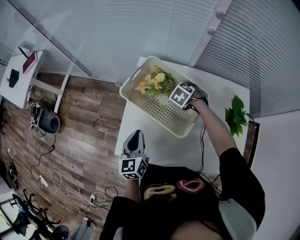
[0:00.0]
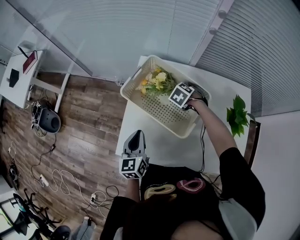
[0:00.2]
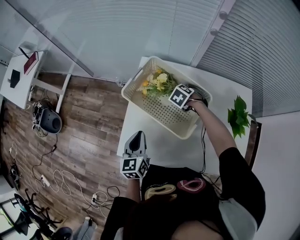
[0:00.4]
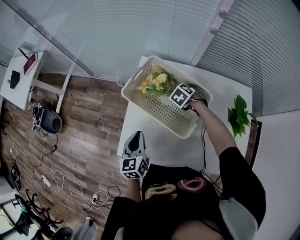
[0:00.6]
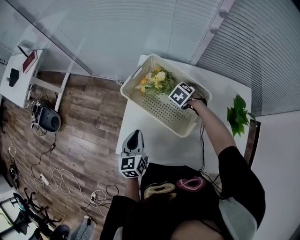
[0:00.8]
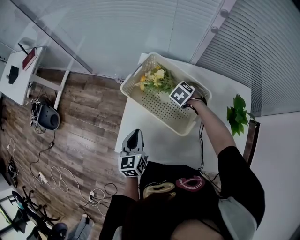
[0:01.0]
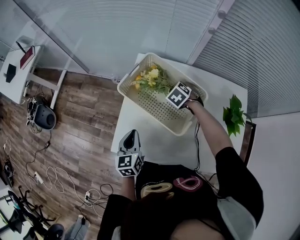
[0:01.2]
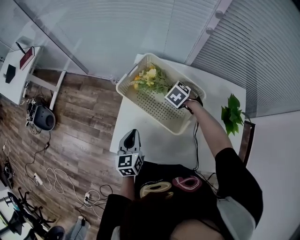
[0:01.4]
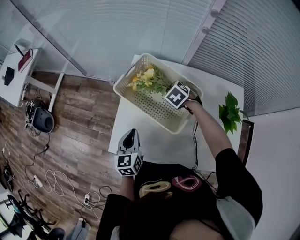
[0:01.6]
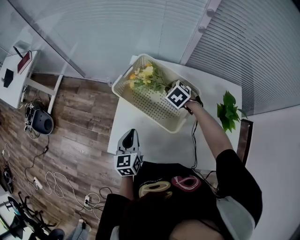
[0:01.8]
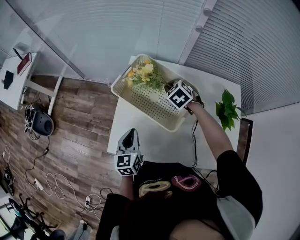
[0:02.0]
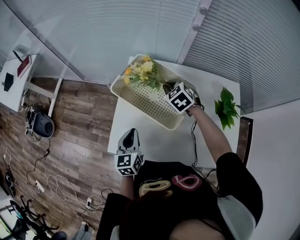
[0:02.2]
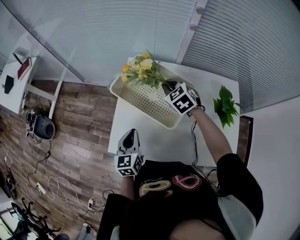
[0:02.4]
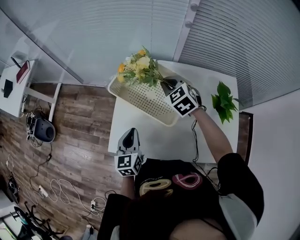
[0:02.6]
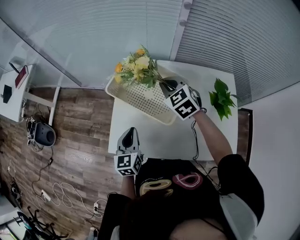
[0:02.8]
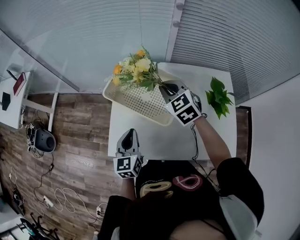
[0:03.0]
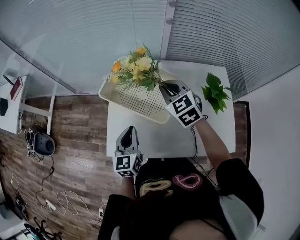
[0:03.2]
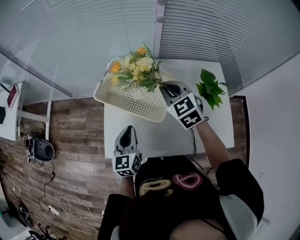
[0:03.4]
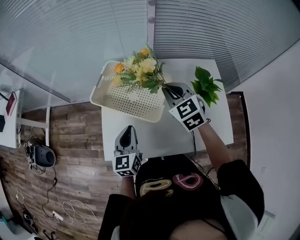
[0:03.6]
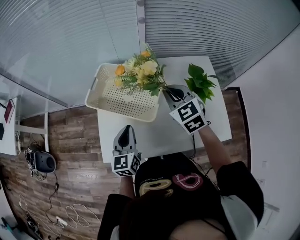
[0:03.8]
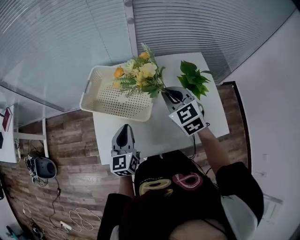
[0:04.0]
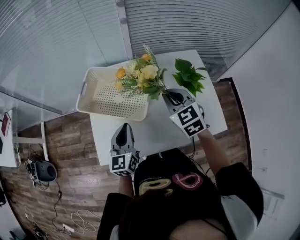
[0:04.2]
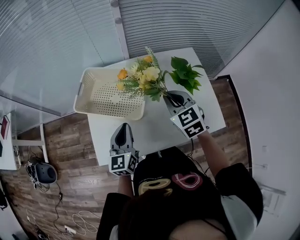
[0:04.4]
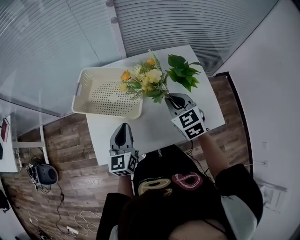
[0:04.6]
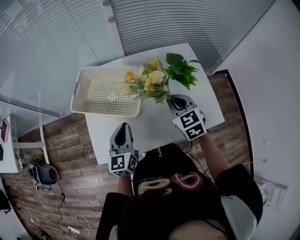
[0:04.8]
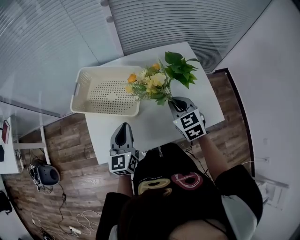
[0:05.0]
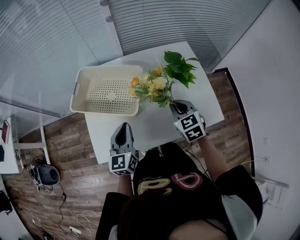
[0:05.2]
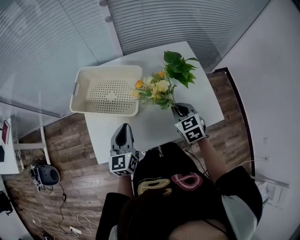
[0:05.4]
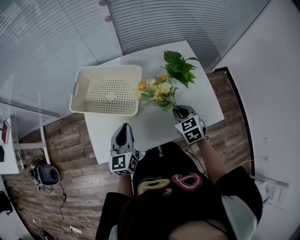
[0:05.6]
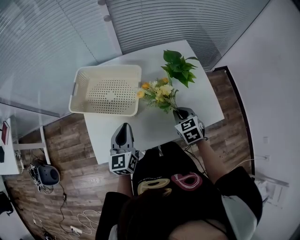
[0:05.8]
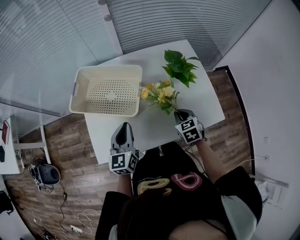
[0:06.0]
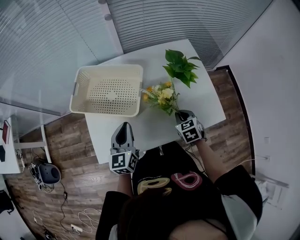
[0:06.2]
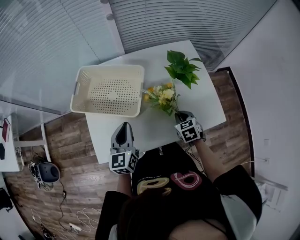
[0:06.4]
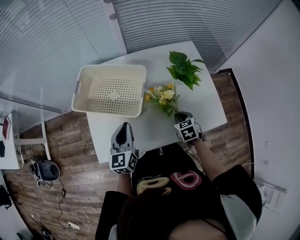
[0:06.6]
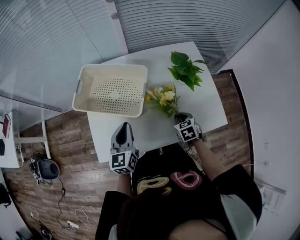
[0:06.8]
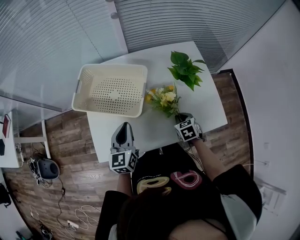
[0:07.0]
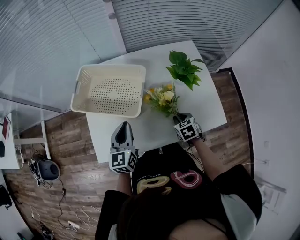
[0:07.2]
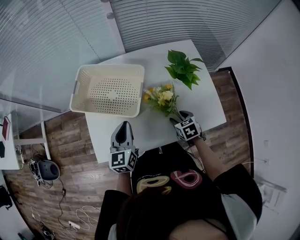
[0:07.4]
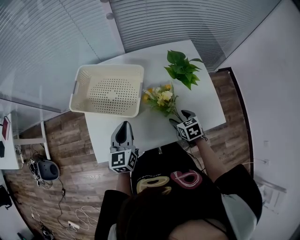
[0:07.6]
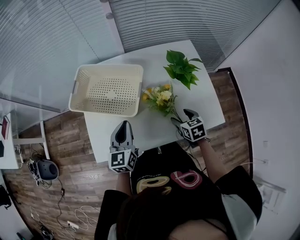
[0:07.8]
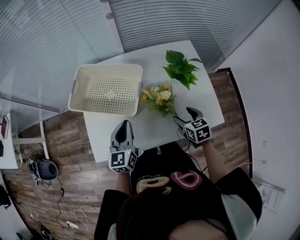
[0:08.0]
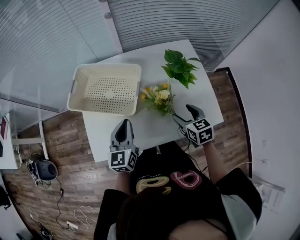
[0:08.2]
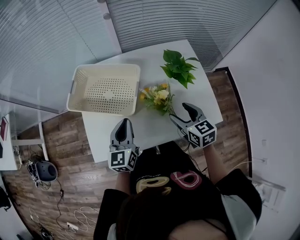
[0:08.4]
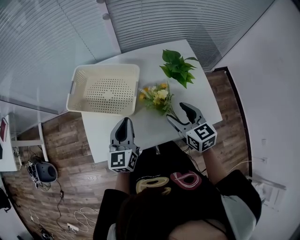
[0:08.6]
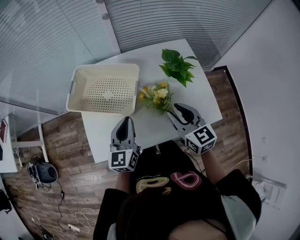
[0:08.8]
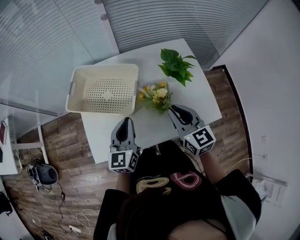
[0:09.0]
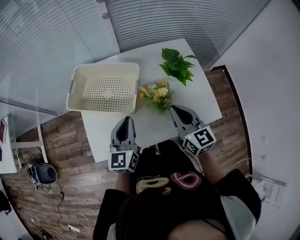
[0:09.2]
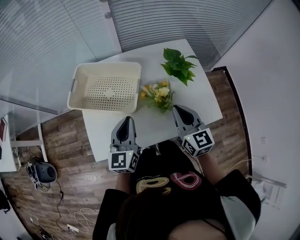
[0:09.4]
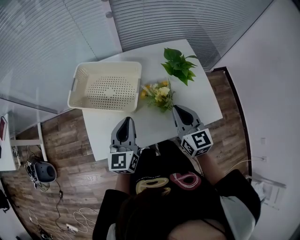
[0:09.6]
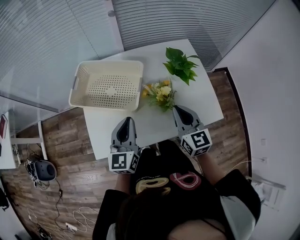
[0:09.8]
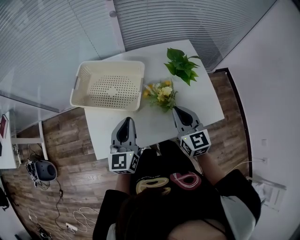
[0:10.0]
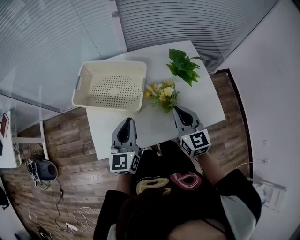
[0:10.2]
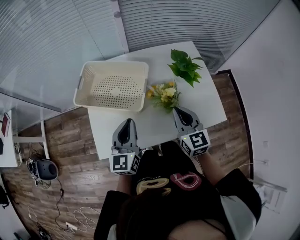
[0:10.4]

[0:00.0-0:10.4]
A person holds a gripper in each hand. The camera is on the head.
0.0 to 1.4 s: The right gripper closes.
1.4 to 3.0 s: The right gripper goes roughly 20 cm upward and backward, and angles its fingers upward, by approximately 30 degrees. Meanwhile the left gripper is displaced upward by some 5 cm.
3.0 to 4.4 s: The left gripper shifts approximately 10 cm to the right; the right gripper shifts about 20 cm to the right and backward, and changes its angle by roughly 20 degrees.
4.4 to 6.0 s: The right gripper heads downward, to the right and backward, covering approximately 20 cm, and swivels roughly 20 degrees.
6.0 to 7.4 s: The right gripper moves downward, approximately 5 cm, and opens.
7.4 to 9.0 s: The left gripper ends up some 5 cm from where it was. The right gripper goes approximately 20 cm upward, tilts its fingers roughly 40 degrees upward, and closes.
9.0 to 10.4 s: The grippers stay close to where they were, moving slightly.

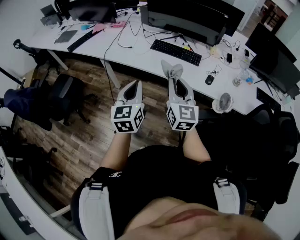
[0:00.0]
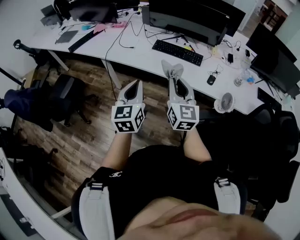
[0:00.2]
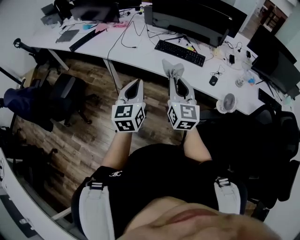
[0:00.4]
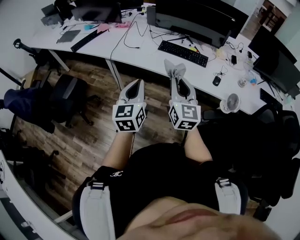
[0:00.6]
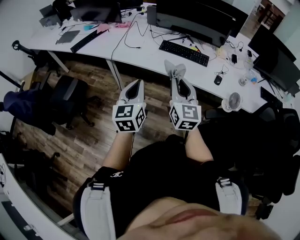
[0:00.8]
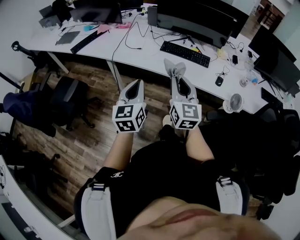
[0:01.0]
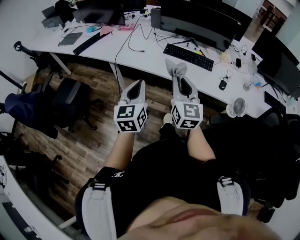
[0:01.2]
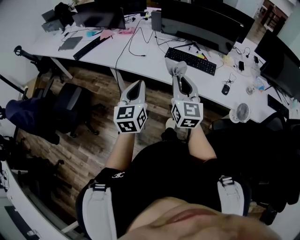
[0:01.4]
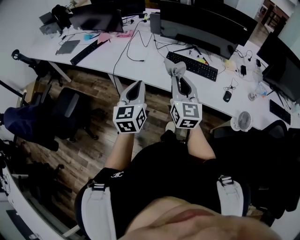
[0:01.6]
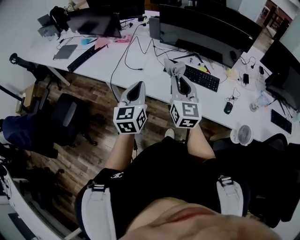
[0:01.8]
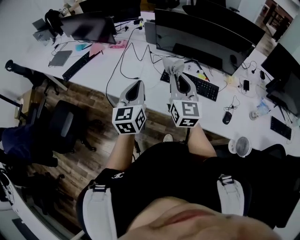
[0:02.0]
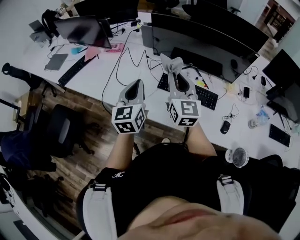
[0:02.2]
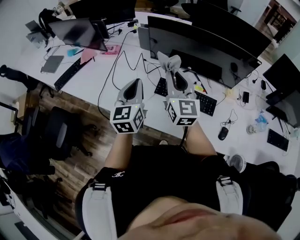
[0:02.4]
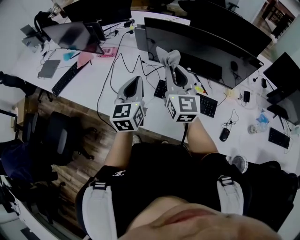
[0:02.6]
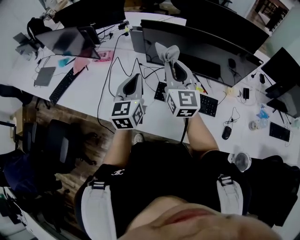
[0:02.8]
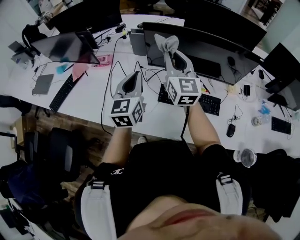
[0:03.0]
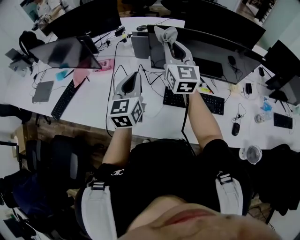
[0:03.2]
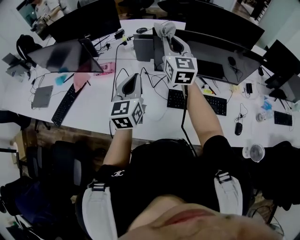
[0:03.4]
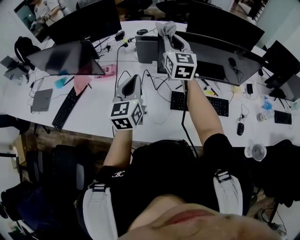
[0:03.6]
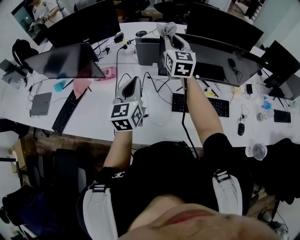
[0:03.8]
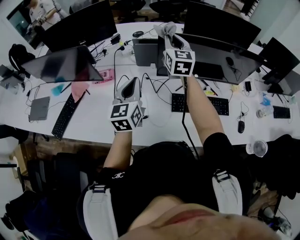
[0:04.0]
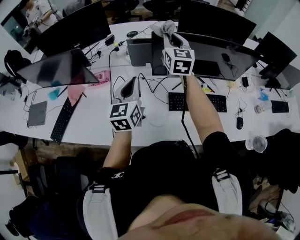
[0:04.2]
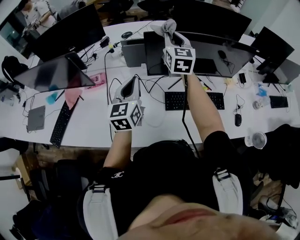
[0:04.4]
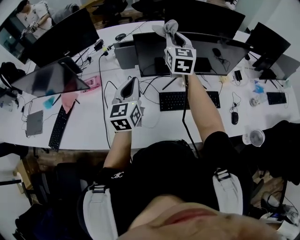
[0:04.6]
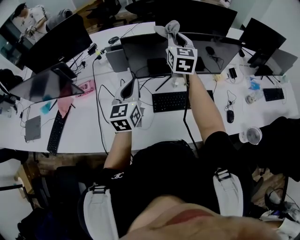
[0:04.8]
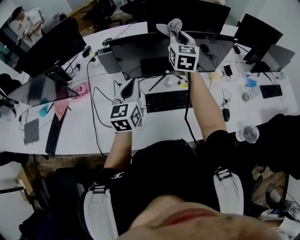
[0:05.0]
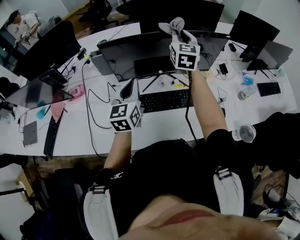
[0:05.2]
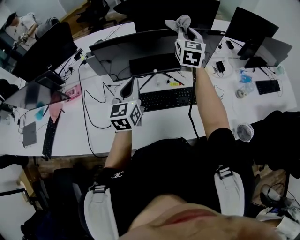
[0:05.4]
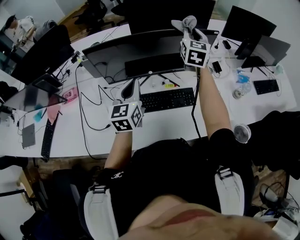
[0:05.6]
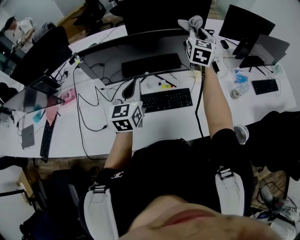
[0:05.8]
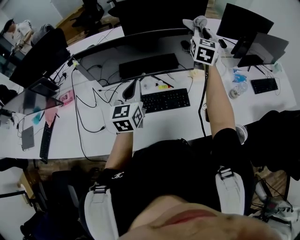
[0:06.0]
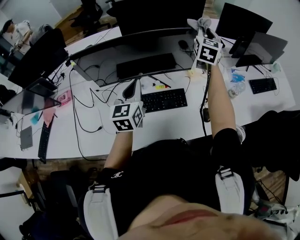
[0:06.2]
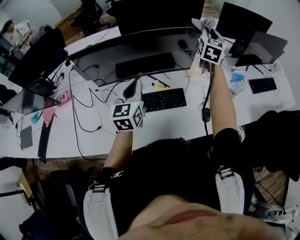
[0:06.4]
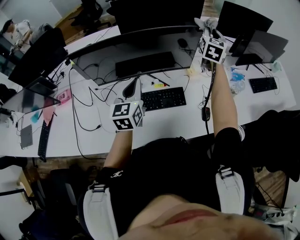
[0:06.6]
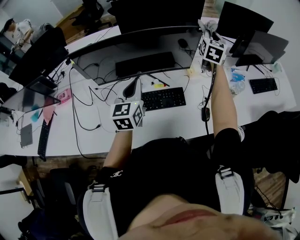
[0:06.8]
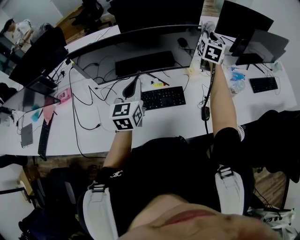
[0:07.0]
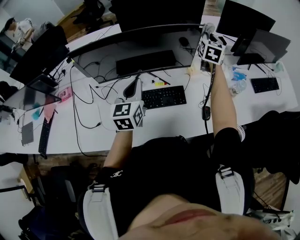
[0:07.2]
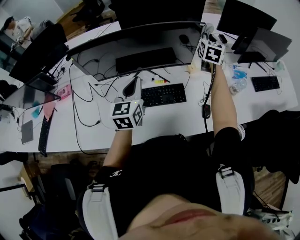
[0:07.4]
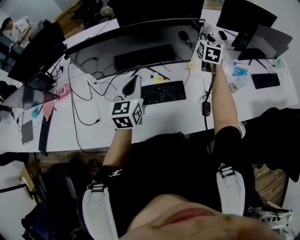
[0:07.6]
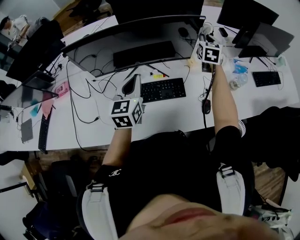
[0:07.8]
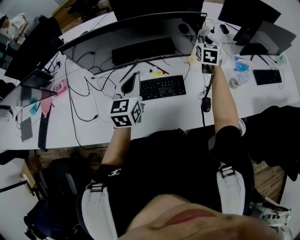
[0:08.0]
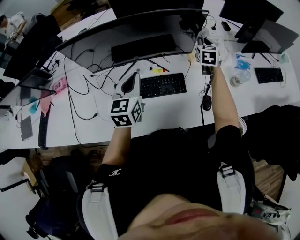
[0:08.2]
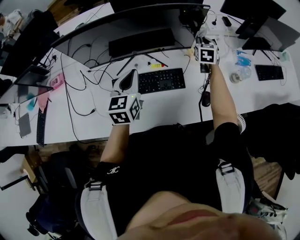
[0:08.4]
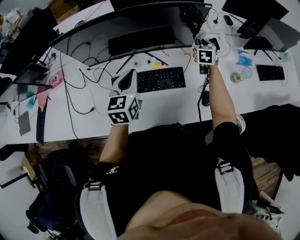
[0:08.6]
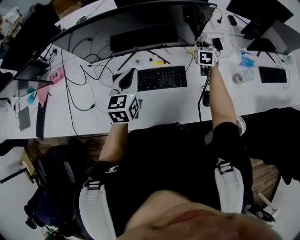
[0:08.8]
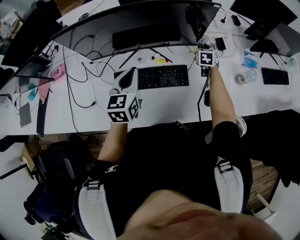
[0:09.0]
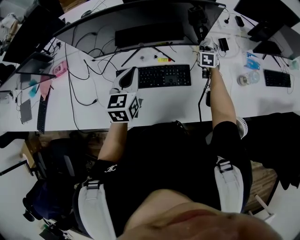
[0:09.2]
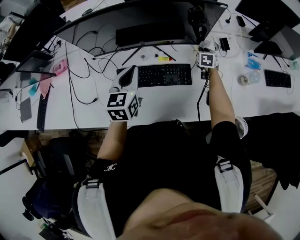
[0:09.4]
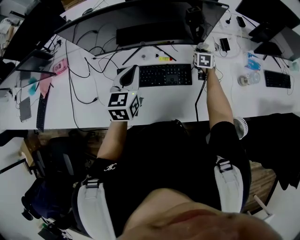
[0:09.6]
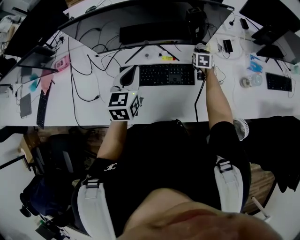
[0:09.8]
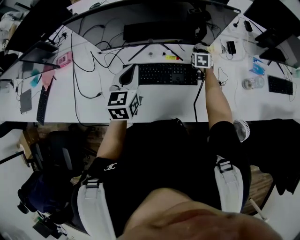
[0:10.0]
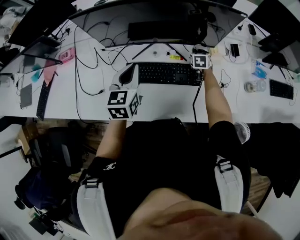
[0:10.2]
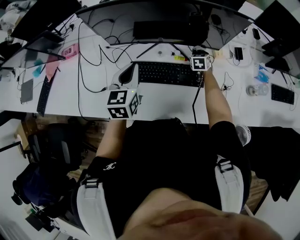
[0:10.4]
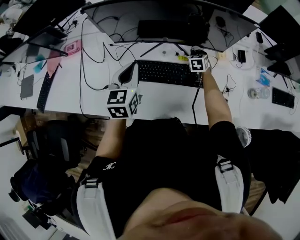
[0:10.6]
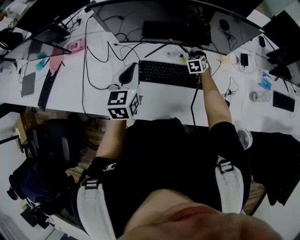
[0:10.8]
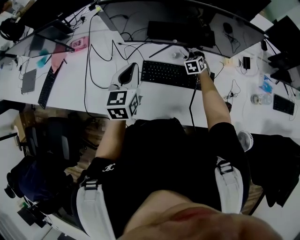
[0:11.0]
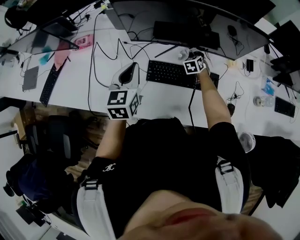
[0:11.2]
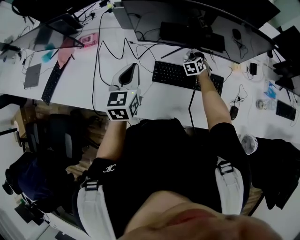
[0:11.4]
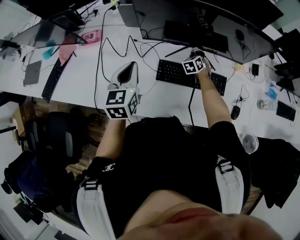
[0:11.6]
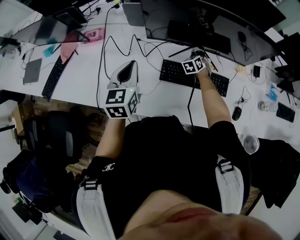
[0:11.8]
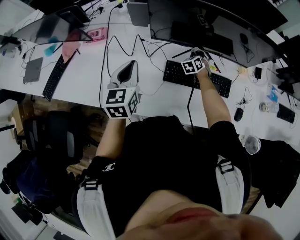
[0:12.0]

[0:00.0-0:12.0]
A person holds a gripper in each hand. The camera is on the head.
0.0 to 1.6 s: Both grippers travel together forward and to the left, about 20 cm.
1.6 to 3.0 s: The two grippers travel together, forward, approximately 40 cm.
3.0 to 4.4 s: The left gripper is displaced forward and to the left by some 10 cm. Meanwhile the right gripper goes approximately 15 cm forward, and changes its angle by roughly 20 degrees.
4.4 to 6.0 s: The left gripper is displaced to the right by about 30 cm, while the right gripper heads to the right, covering some 50 cm, and swivels roughly 20 degrees.
6.0 to 7.6 s: The right gripper heads downward and to the right, covering approximately 15 cm.
7.6 to 9.0 s: The left gripper moves downward, approximately 5 cm; the right gripper travels downward by some 25 cm, and changes its angle by roughly 20 degrees.
9.0 to 10.4 s: The left gripper shifts roughly 10 cm to the left. Meanwhile the right gripper shifts some 15 cm to the left and downward.
10.4 to 12.0 s: Both grippers travel together to the left, about 20 cm. The right gripper rotates roughly 30 degrees.

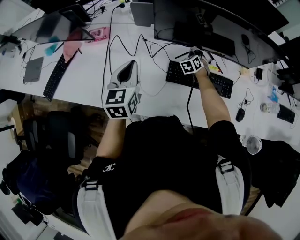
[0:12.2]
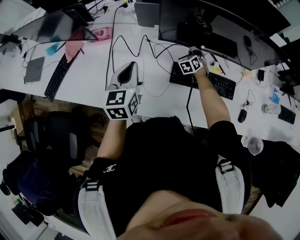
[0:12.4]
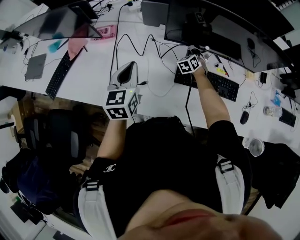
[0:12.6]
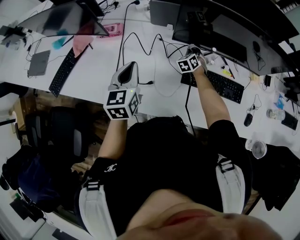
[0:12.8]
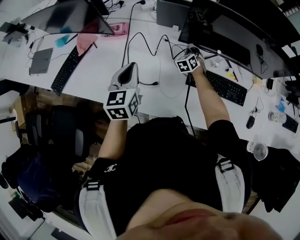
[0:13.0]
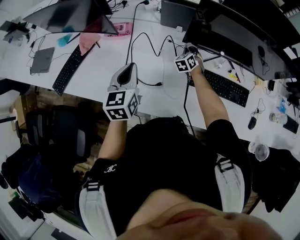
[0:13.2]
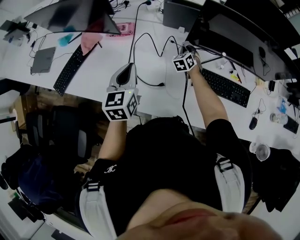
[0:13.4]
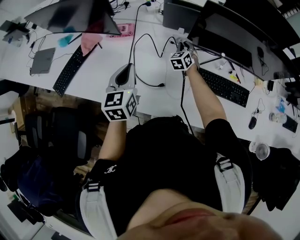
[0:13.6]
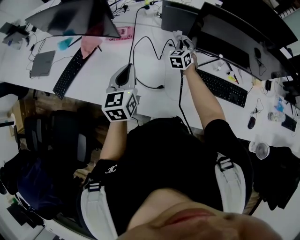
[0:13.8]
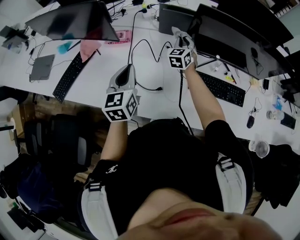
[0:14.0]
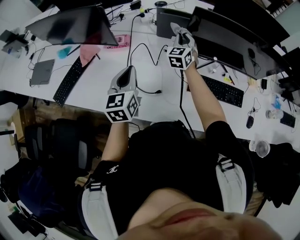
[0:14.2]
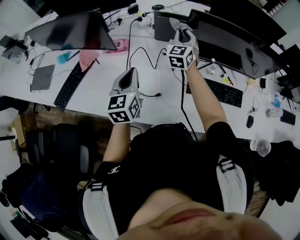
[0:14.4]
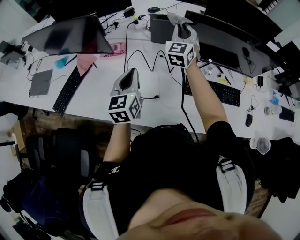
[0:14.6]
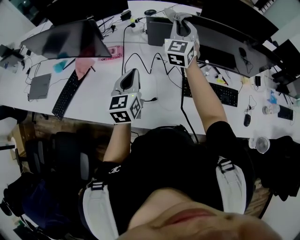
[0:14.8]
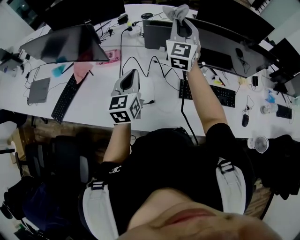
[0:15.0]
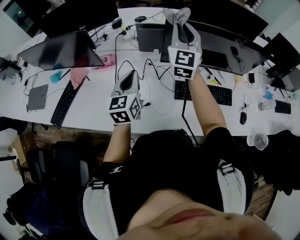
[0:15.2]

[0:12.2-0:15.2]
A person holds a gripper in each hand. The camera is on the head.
12.2 to 13.8 s: The left gripper shifts approximately 15 cm to the left; the right gripper is displaced to the left and upward by about 25 cm, and rotates roughly 20 degrees.
13.8 to 15.2 s: The right gripper heads upward, covering roughly 35 cm, and tips its fingers upward by about 40 degrees. The left gripper travels to the right by about 10 cm.
